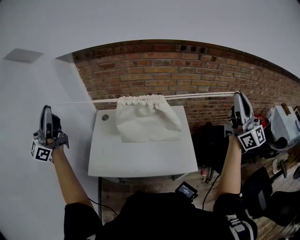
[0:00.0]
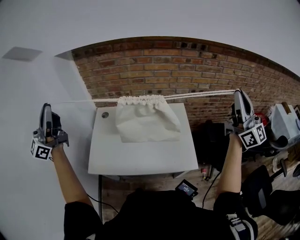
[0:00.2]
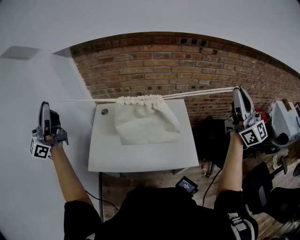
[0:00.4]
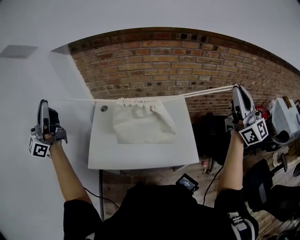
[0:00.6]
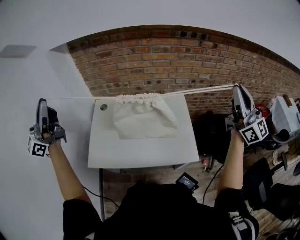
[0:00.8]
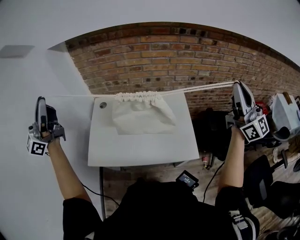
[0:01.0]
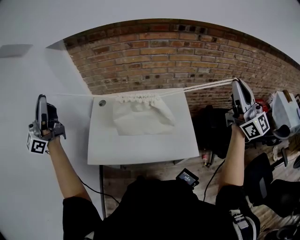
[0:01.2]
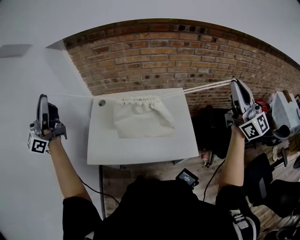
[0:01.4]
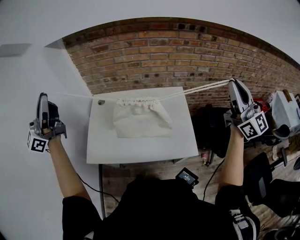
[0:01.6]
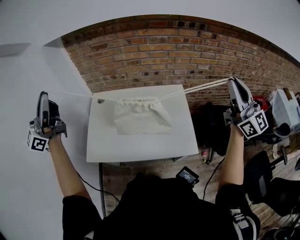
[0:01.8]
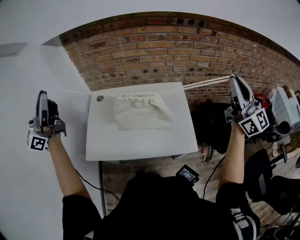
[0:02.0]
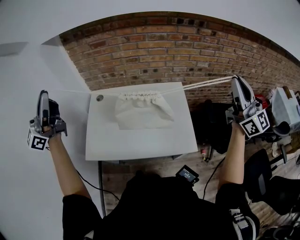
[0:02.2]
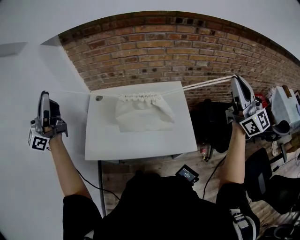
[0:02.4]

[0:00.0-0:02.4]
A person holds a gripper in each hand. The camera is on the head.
0:00.0 to 0:02.4: The grippers stay close to where they were, moving slightly.

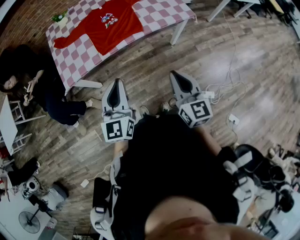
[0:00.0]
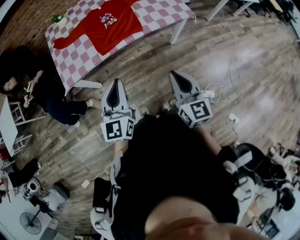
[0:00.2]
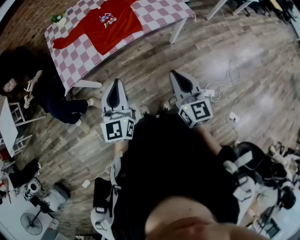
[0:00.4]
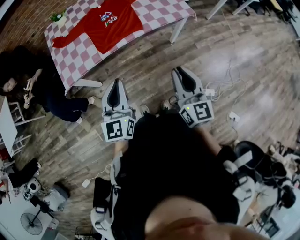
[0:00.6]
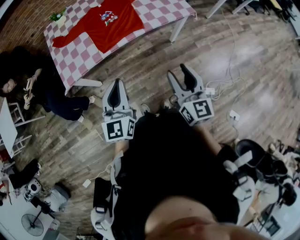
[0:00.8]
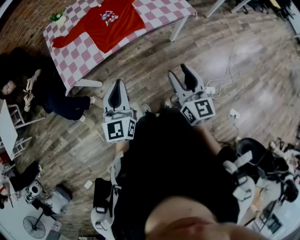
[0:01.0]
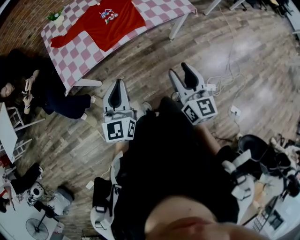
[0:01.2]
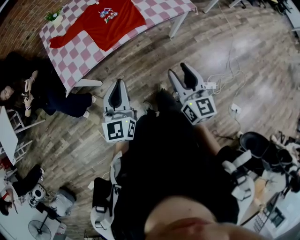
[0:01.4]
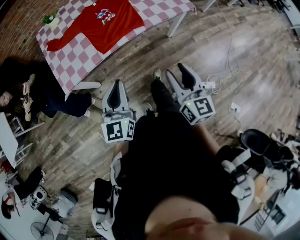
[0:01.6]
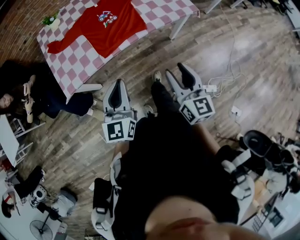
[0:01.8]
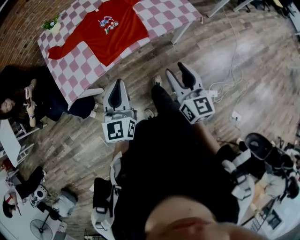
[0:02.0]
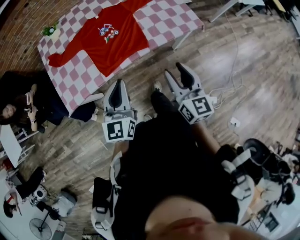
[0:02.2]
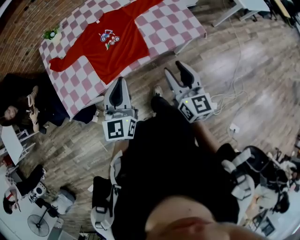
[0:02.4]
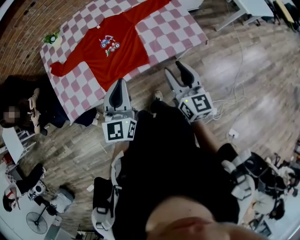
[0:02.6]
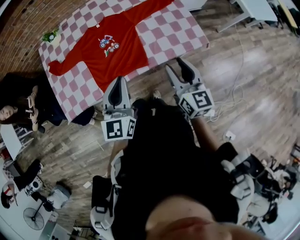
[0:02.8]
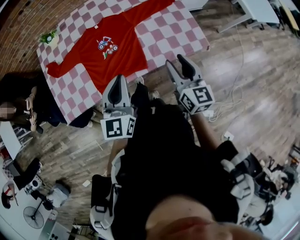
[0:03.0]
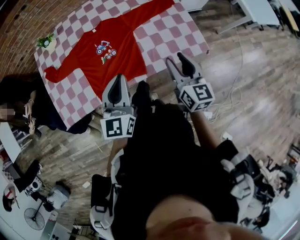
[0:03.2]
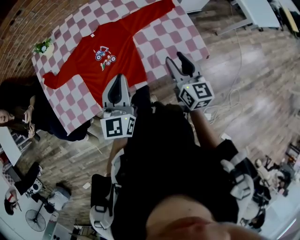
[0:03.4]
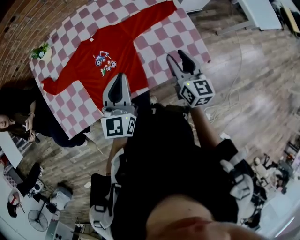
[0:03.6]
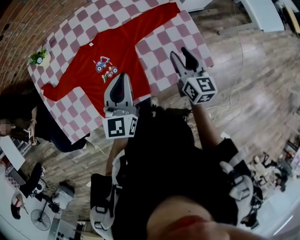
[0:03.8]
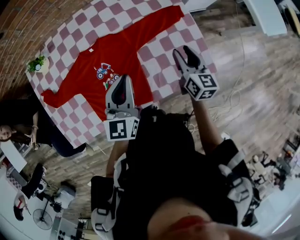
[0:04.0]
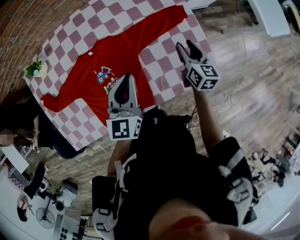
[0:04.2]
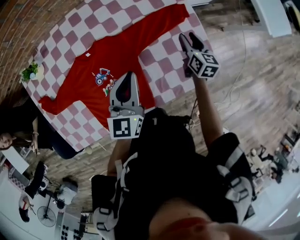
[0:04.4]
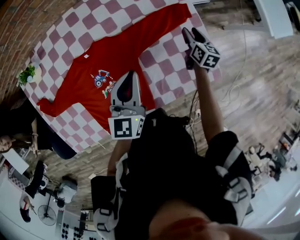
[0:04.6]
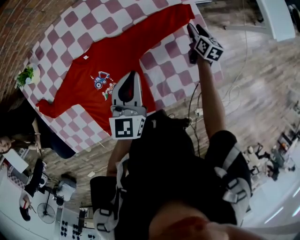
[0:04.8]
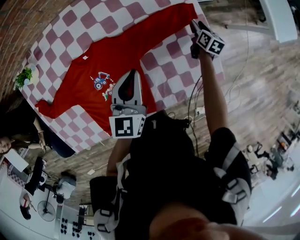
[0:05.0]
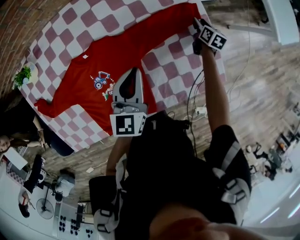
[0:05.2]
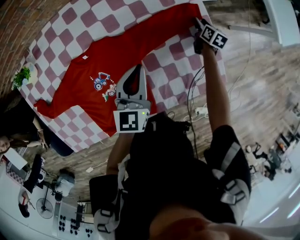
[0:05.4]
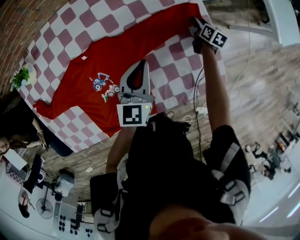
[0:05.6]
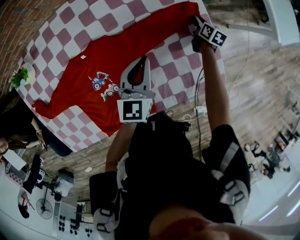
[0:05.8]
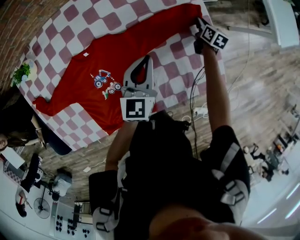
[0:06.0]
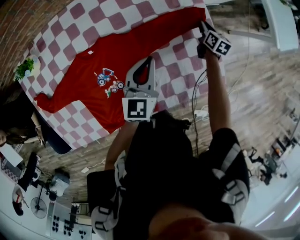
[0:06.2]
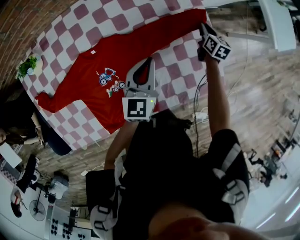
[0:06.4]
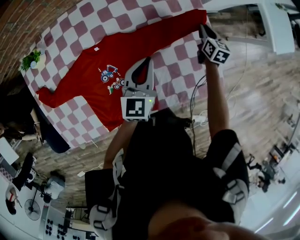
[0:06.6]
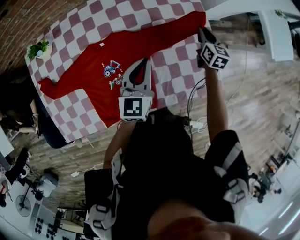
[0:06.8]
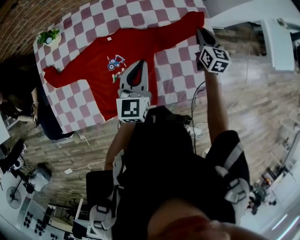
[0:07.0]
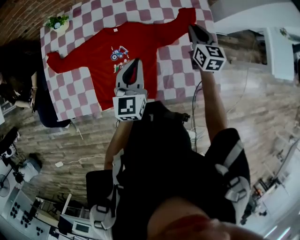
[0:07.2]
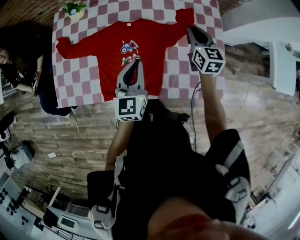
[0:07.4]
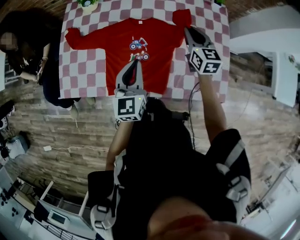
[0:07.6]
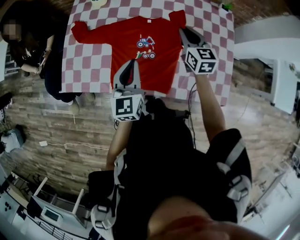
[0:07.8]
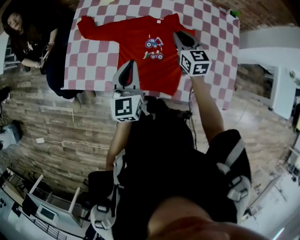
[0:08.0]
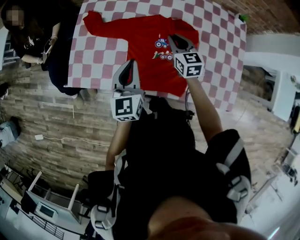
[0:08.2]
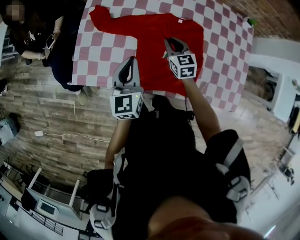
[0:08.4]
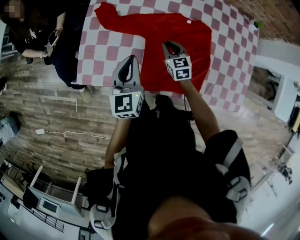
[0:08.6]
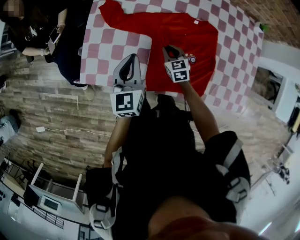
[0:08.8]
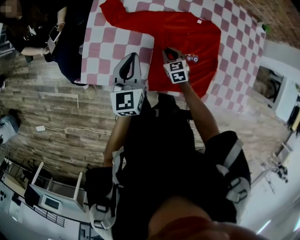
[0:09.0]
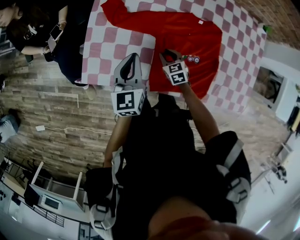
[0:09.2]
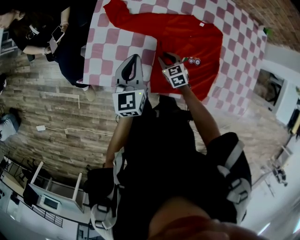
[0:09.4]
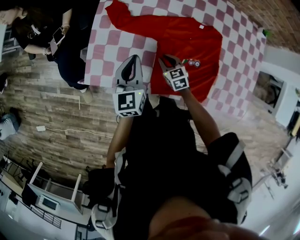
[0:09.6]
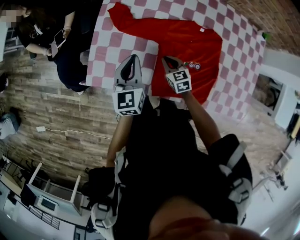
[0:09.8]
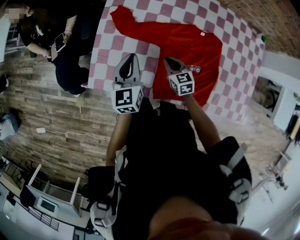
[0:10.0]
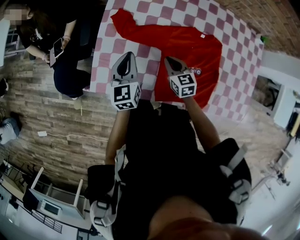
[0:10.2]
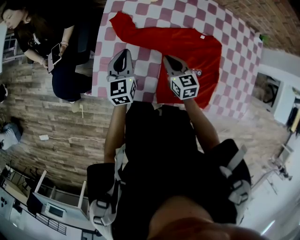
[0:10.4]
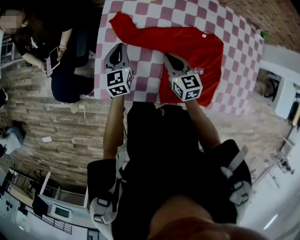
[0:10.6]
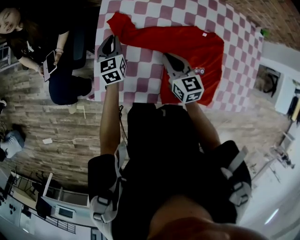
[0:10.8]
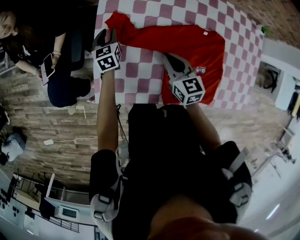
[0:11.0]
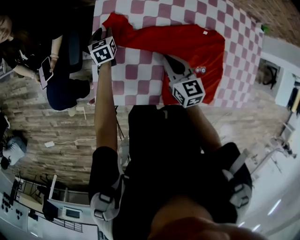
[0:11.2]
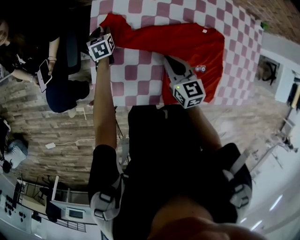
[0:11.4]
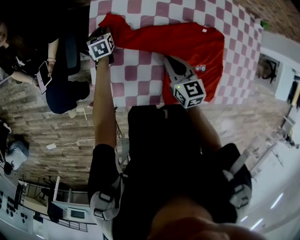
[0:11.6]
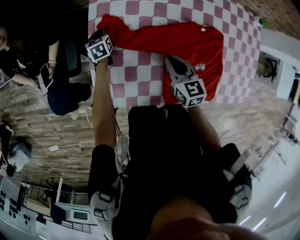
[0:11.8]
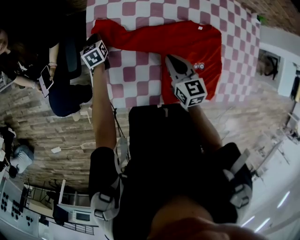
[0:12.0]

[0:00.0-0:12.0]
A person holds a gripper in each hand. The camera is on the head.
0:00.0 to 0:01.6: Both grippers move to the left, some 5 cm. The right gripper opens its fingers.
0:01.6 to 0:03.0: The grippers both shift forward by approximately 35 cm.
0:03.0 to 0:04.4: The left gripper is displaced forward by about 30 cm. Meanwhile the right gripper shifts about 40 cm forward and downward, and changes its angle by about 20 degrees.
0:04.4 to 0:06.0: The left gripper shifts about 10 cm downward and forward. Meanwhile the right gripper travels forward and downward by some 20 cm, and closes.
0:06.0 to 0:07.6: The left gripper ends up some 30 cm from where it was, and turns by roughly 30 degrees, while the right gripper shifts by approximately 50 cm, and changes its angle by some 50 degrees.
0:07.6 to 0:09.0: The right gripper travels to the left and downward by some 50 cm, and swivels approximately 30 degrees. The left gripper travels to the left by some 30 cm.
0:09.0 to 0:10.4: The right gripper shifts roughly 15 cm upward, to the left and forward. The left gripper travels forward and to the left by roughly 10 cm.
0:10.4 to 0:12.0: The left gripper moves downward, forward and to the left, about 30 cm, swivels about 20 degrees, and opens and closes again.

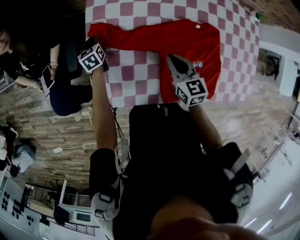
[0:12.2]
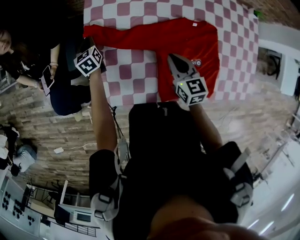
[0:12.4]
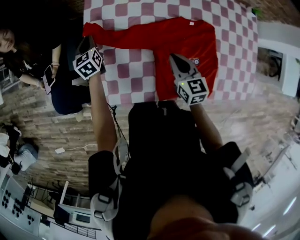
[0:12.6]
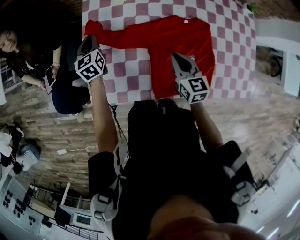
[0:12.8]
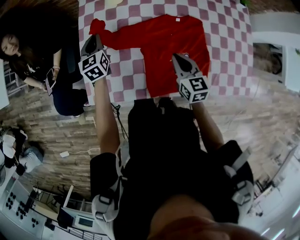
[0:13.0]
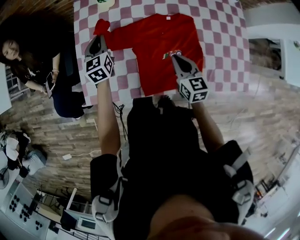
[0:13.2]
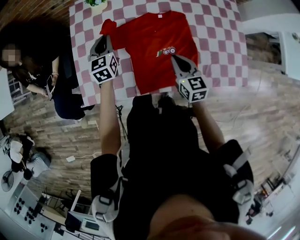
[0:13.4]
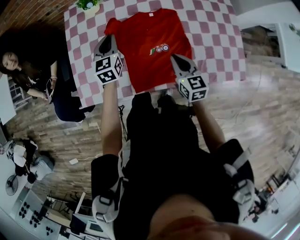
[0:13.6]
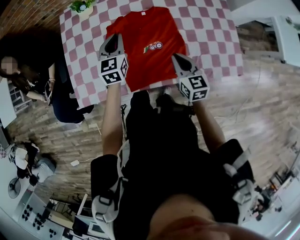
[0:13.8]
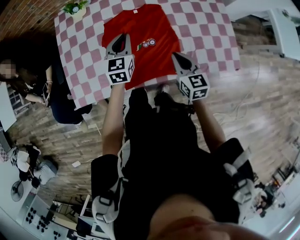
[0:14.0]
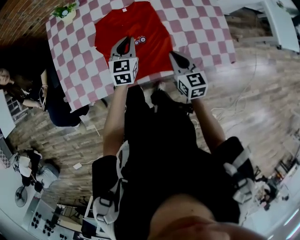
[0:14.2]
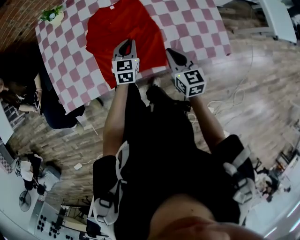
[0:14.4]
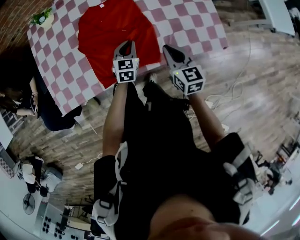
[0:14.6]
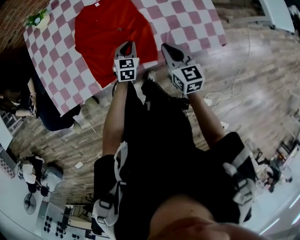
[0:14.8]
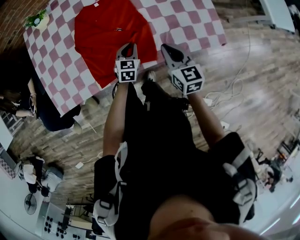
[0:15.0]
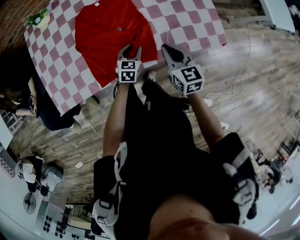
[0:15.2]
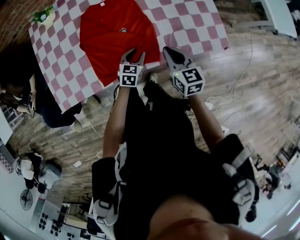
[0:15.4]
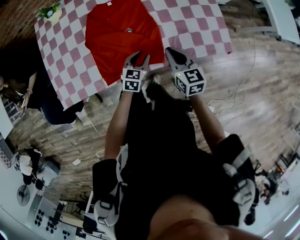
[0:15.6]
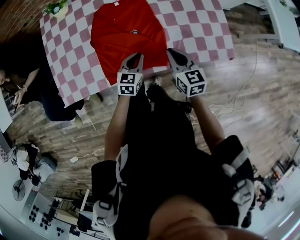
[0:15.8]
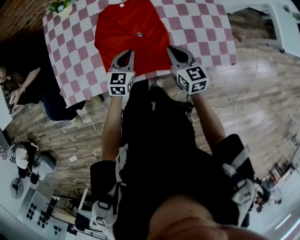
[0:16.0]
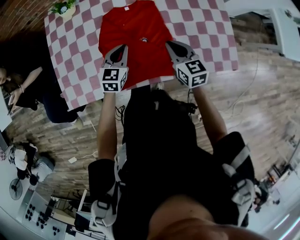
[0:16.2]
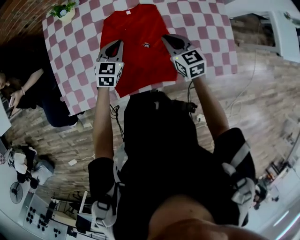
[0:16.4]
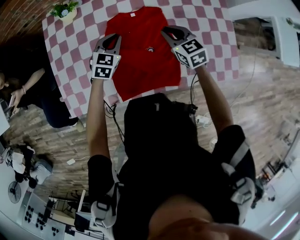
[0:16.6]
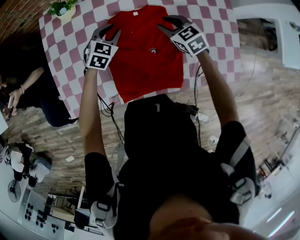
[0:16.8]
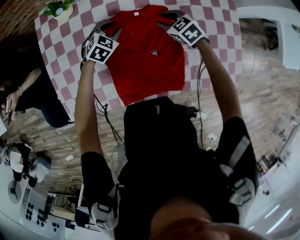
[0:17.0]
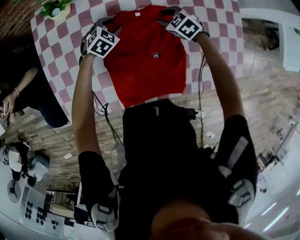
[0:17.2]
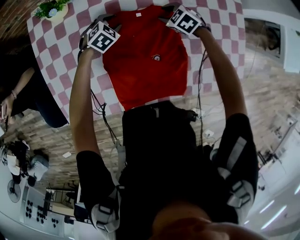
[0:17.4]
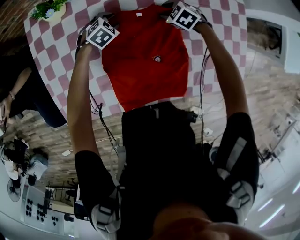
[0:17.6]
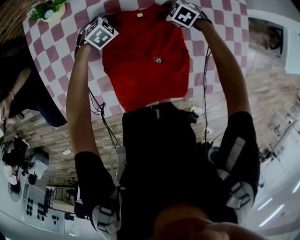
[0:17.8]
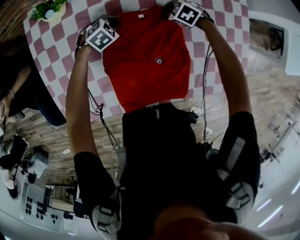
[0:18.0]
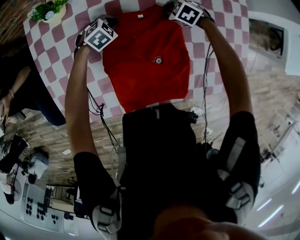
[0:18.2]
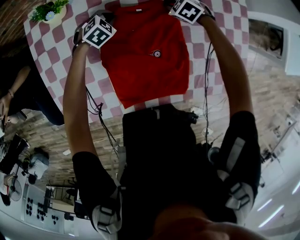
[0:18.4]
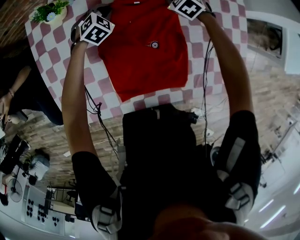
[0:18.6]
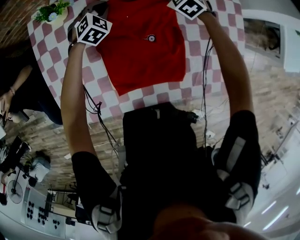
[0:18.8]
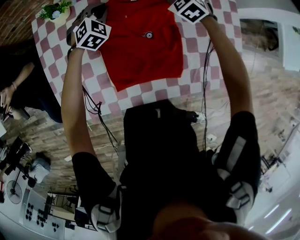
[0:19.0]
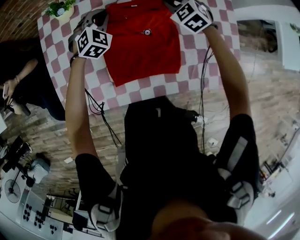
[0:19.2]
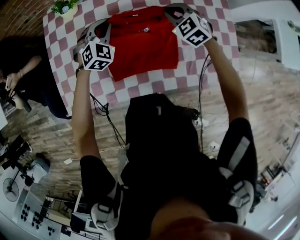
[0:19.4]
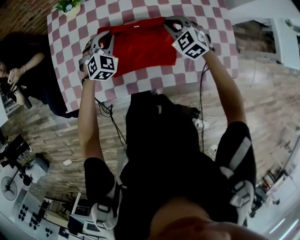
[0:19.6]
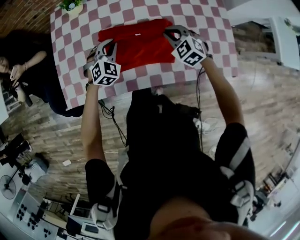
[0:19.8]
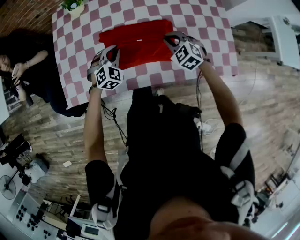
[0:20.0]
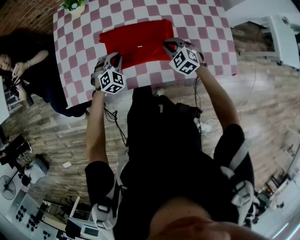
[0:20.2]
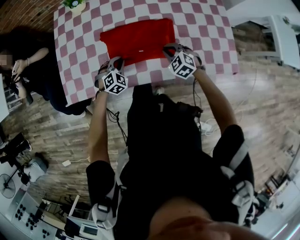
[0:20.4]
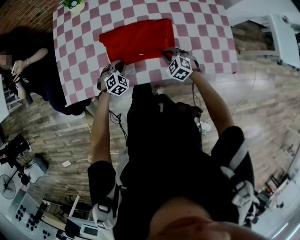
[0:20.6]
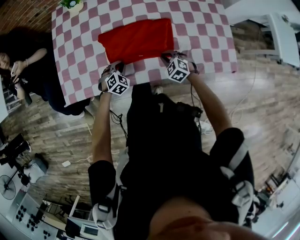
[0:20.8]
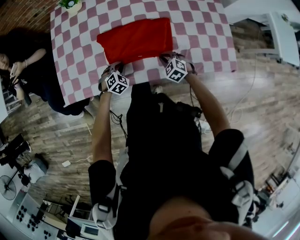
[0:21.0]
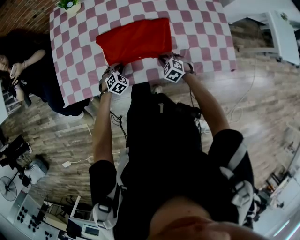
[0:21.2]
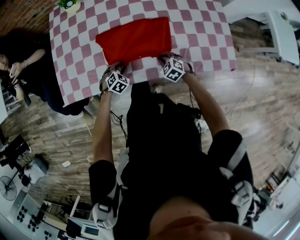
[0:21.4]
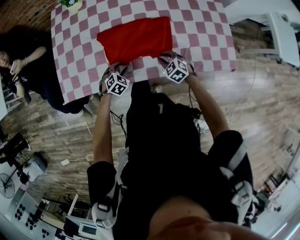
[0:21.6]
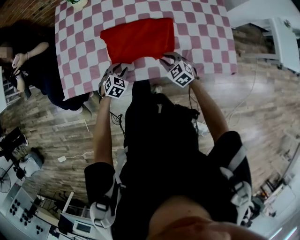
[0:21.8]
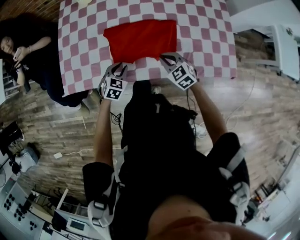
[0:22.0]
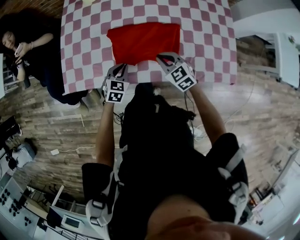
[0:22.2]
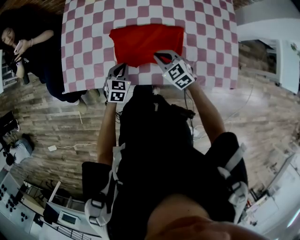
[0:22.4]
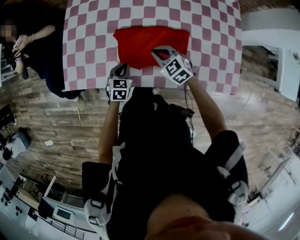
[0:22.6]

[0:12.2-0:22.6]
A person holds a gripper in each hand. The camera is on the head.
0:12.2 to 0:13.6: The left gripper travels to the right, upward and backward by roughly 40 cm, and changes its angle by about 30 degrees. The right gripper travels to the right and backward by some 30 cm.
0:13.6 to 0:15.2: The left gripper shifts approximately 40 cm to the right, downward and backward, rotates roughly 30 degrees, and opens; the right gripper moves to the right and backward, approximately 20 cm.
0:15.2 to 0:16.6: The left gripper is displaced to the left, forward and upward by approximately 30 cm, and closes. Meanwhile the right gripper heads forward and to the left, covering approximately 25 cm, and changes its angle by about 30 degrees.
0:16.6 to 0:18.2: Both grippers move downward and forward, about 25 cm. The left gripper swivels about 40 degrees, and opens, then closes again. The right gripper points its fingers roughly 40 degrees further downward, and opens, then closes again.
0:18.2 to 0:19.6: Both grippers travel together upward and backward, about 30 cm. The left gripper changes its angle by roughly 40 degrees, while the right gripper points its fingers approximately 30 degrees further upward.
0:19.6 to 0:21.2: Both grippers travel together downward and backward, roughly 30 cm. The left gripper rotates approximately 30 degrees.
0:21.2 to 0:22.6: The left gripper goes roughly 10 cm upward, rolls counterclockwise, seen from behind, by some 40 degrees, and opens, then closes once more. Meanwhile the right gripper is displaced upward, to the left and forward by about 20 cm, and turns by some 20 degrees.
